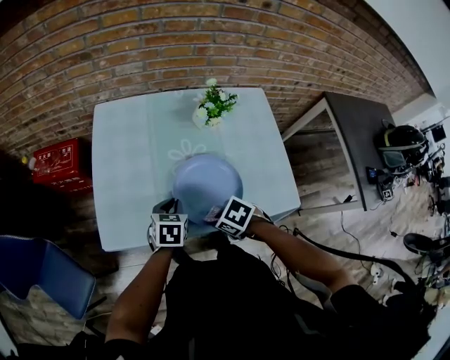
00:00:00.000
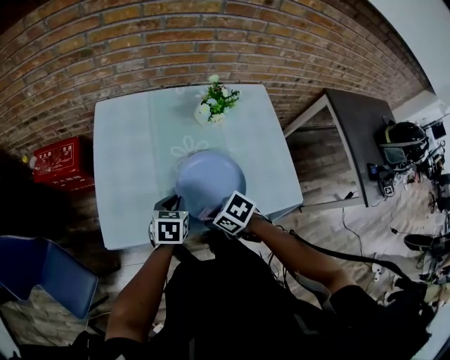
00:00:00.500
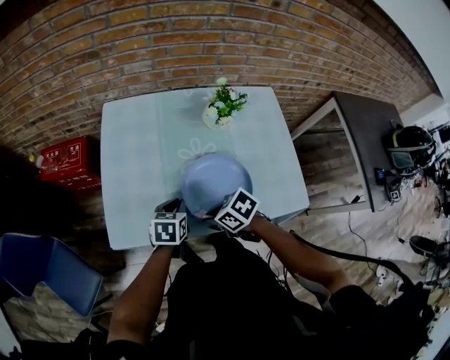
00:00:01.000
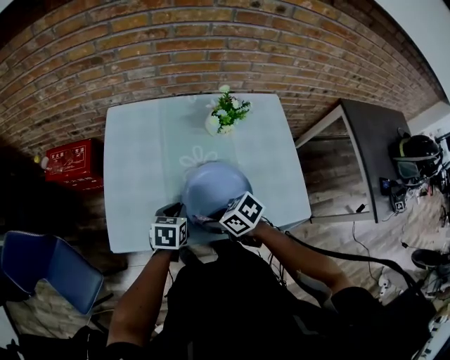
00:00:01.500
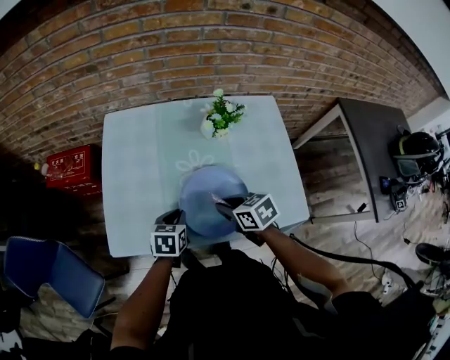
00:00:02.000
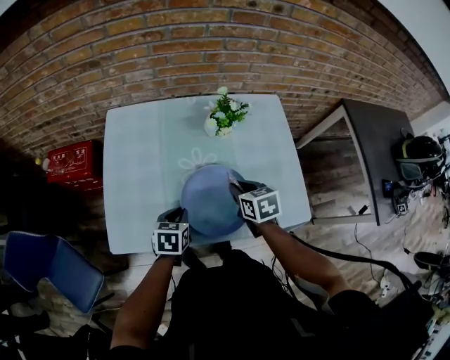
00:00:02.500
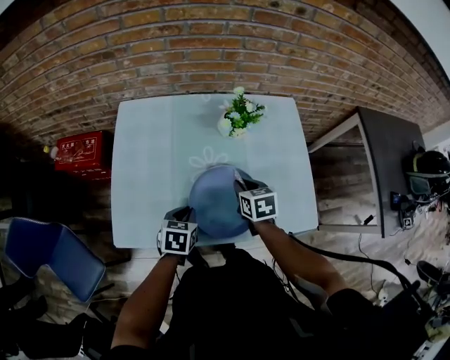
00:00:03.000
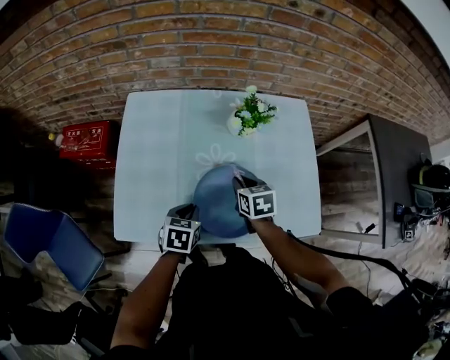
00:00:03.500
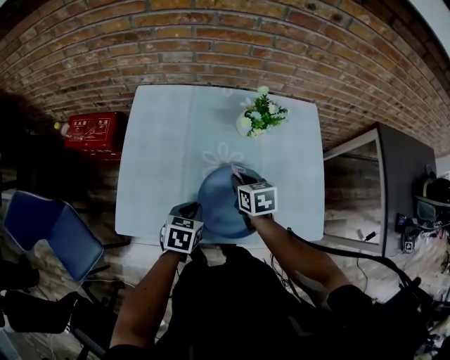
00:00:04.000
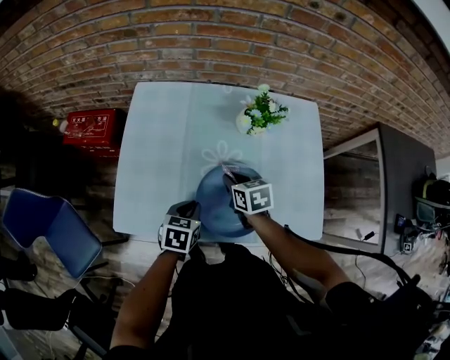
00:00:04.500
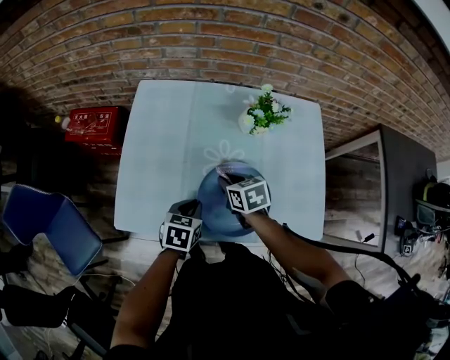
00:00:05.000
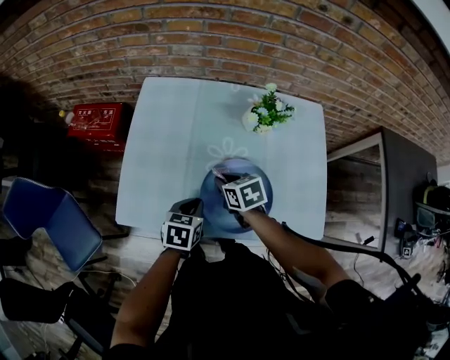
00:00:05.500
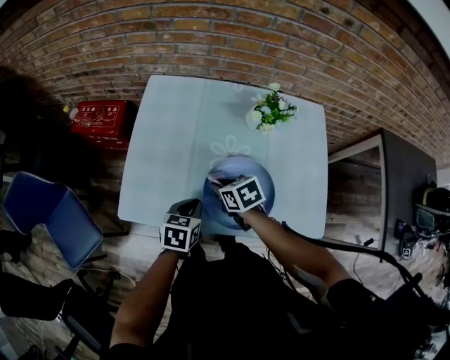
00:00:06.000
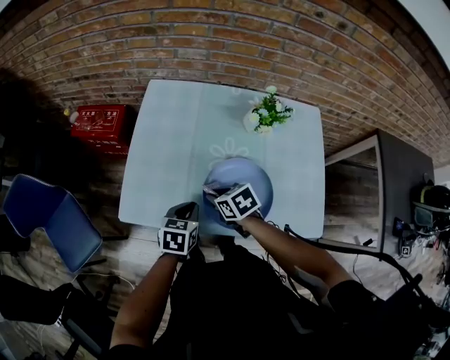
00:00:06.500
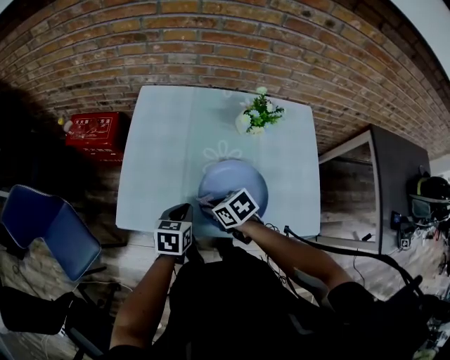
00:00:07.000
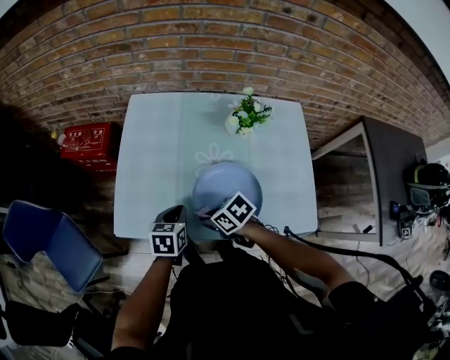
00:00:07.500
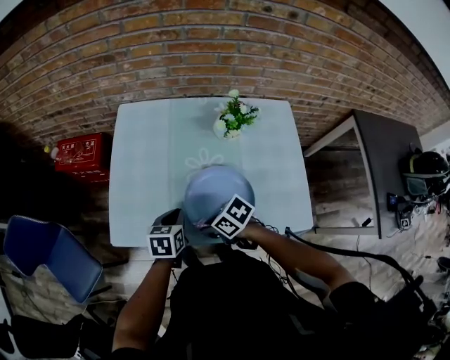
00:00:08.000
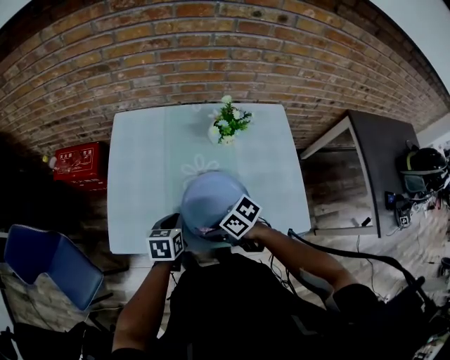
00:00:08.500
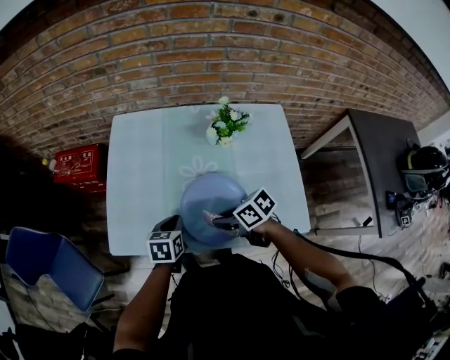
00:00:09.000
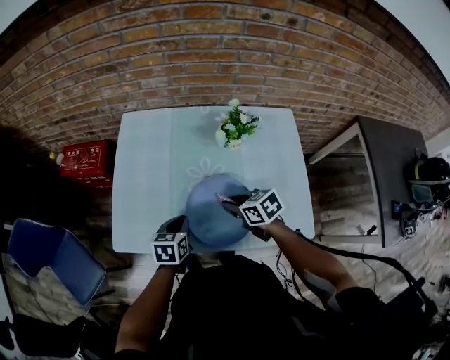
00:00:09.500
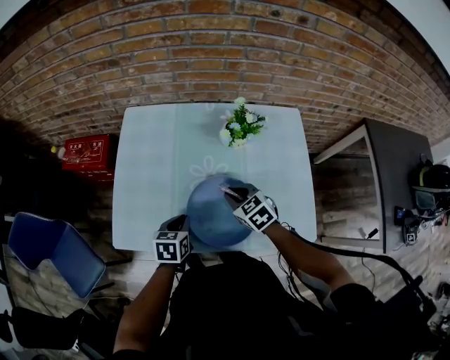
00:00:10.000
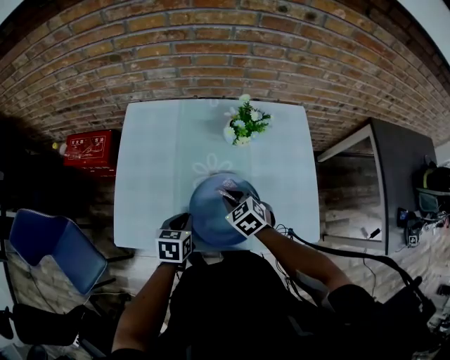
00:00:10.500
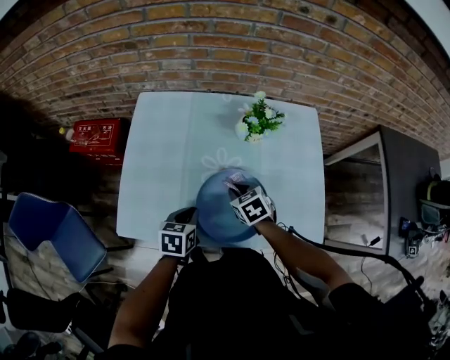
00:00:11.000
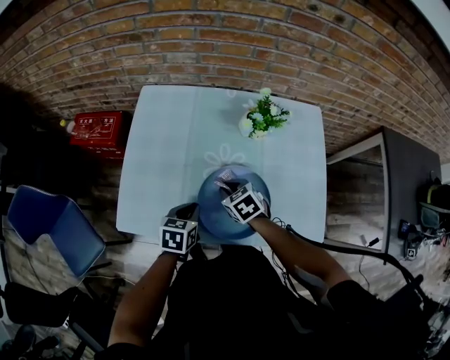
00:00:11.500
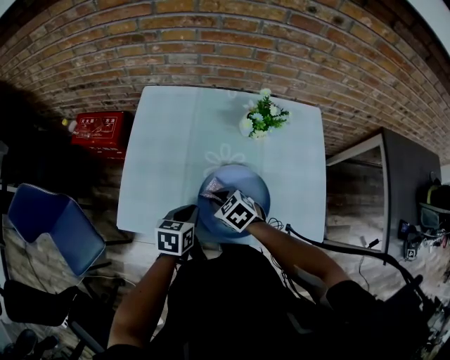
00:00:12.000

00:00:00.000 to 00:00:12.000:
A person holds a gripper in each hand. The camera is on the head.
00:00:00.000 to 00:00:02.000: The right gripper changes place by roughly 10 cm, and rotates some 40 degrees.
00:00:02.000 to 00:00:04.000: The right gripper moves forward, roughly 10 cm.
00:00:04.000 to 00:00:06.000: The right gripper heads to the left, covering some 10 cm, and turns by about 20 degrees.
00:00:06.000 to 00:00:08.000: The right gripper moves backward, some 10 cm, and swivels some 30 degrees.
00:00:08.000 to 00:00:10.000: The right gripper changes place by roughly 15 cm, and swivels about 40 degrees.
00:00:10.000 to 00:00:12.000: The right gripper heads to the left, covering some 10 cm.

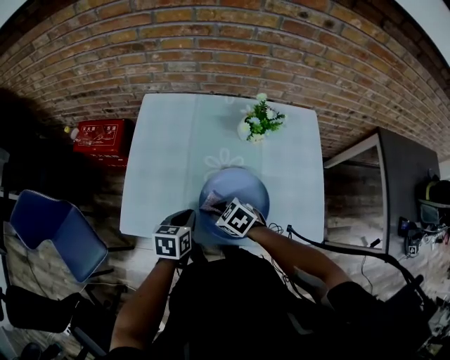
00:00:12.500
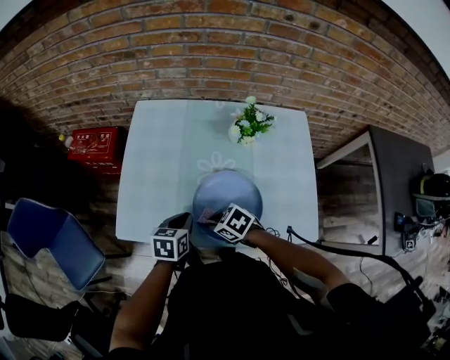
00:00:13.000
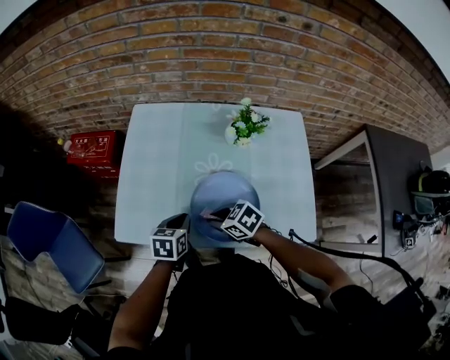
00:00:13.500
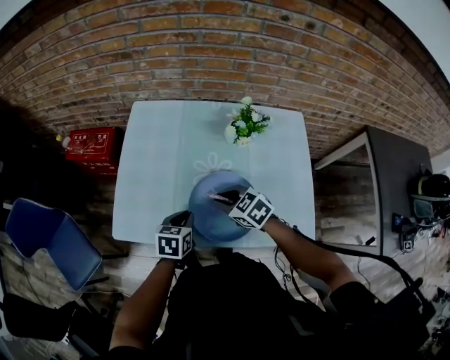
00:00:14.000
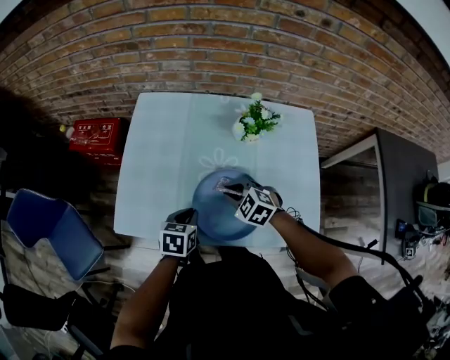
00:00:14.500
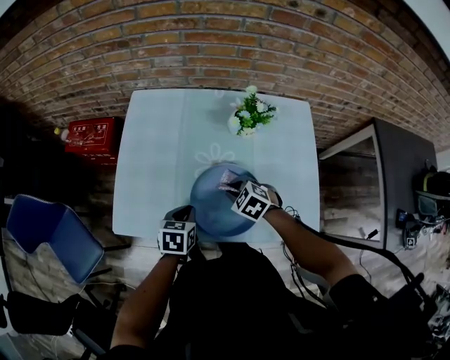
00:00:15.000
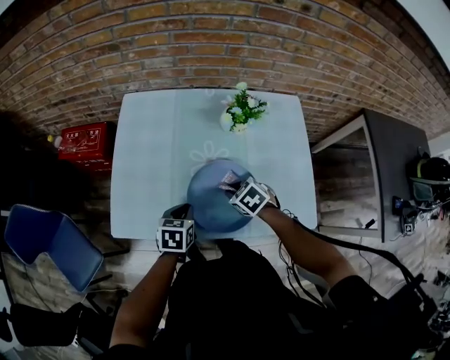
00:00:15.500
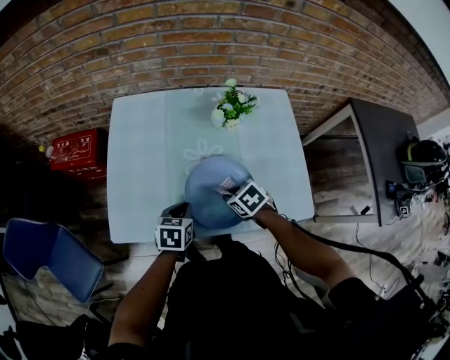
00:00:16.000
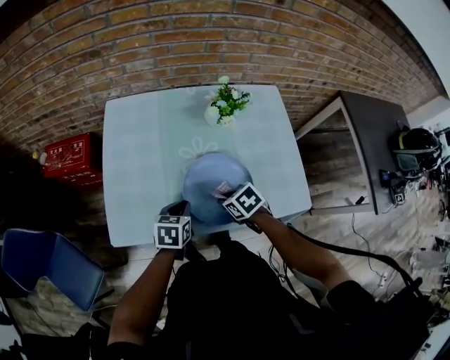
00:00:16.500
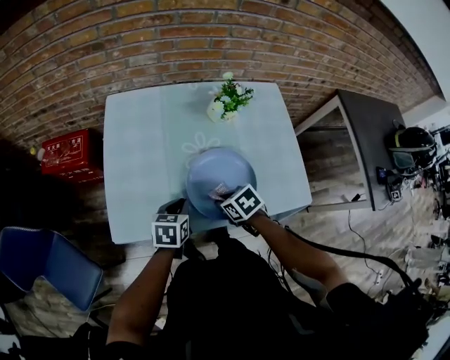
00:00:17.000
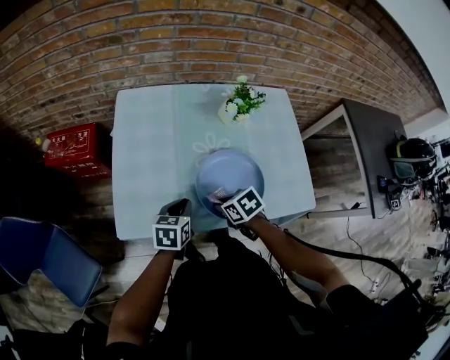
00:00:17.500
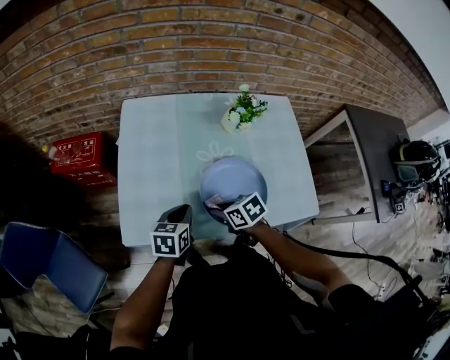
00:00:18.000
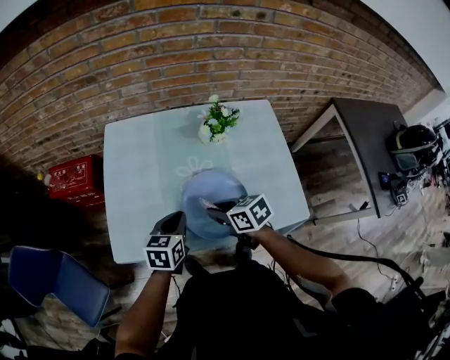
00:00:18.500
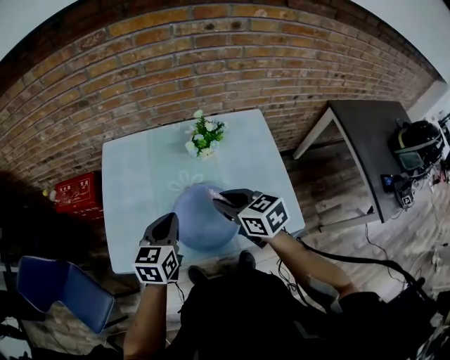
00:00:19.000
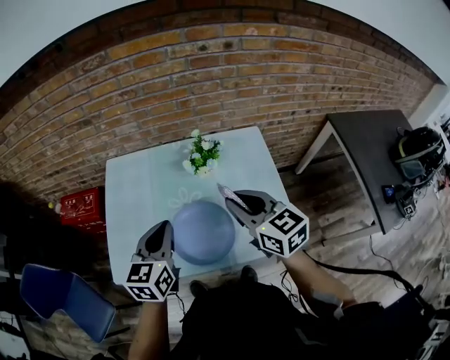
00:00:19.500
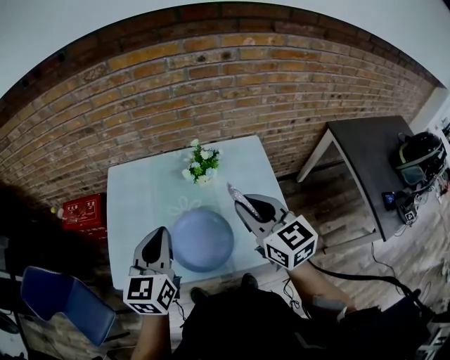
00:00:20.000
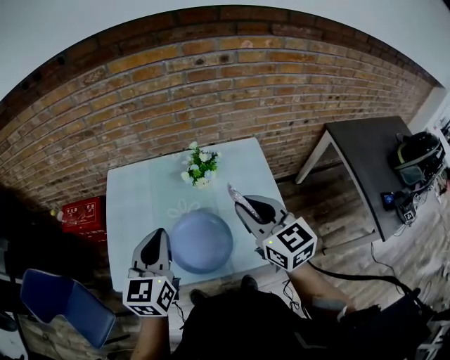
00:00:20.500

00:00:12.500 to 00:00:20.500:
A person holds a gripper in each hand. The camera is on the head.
00:00:12.500 to 00:00:14.500: The right gripper heads to the right, covering approximately 10 cm, and swivels approximately 30 degrees.
00:00:14.500 to 00:00:16.500: The right gripper travels backward by about 5 cm, and rotates around the line of its fingers by some 50 degrees, clockwise from behind.
00:00:16.500 to 00:00:18.500: The grippers both shift upward by about 5 cm. The right gripper goes to the left and returns, roughly 10 cm each way, and turns by some 30 degrees.
00:00:18.500 to 00:00:20.500: The left gripper goes roughly 20 cm upward, and swivels approximately 30 degrees. Meanwhile the right gripper goes approximately 30 cm upward and to the right, and changes its angle by approximately 50 degrees.

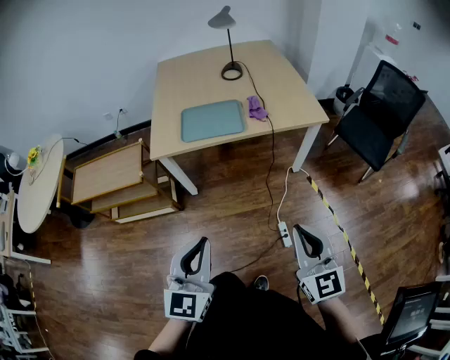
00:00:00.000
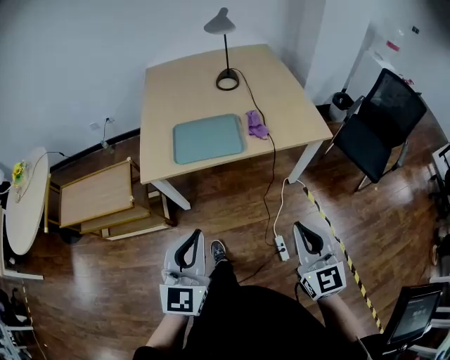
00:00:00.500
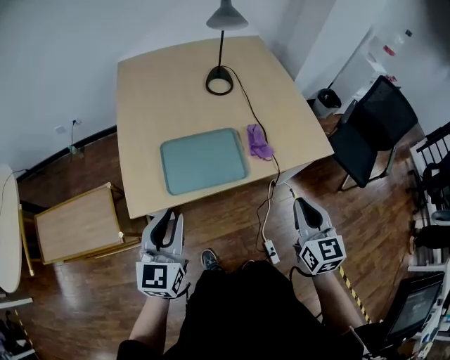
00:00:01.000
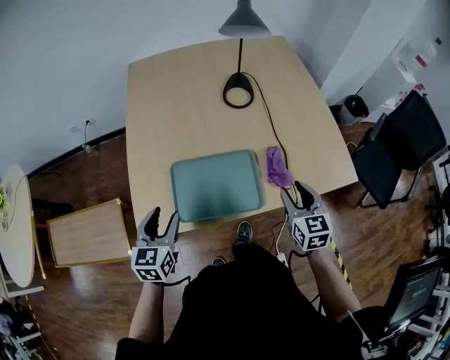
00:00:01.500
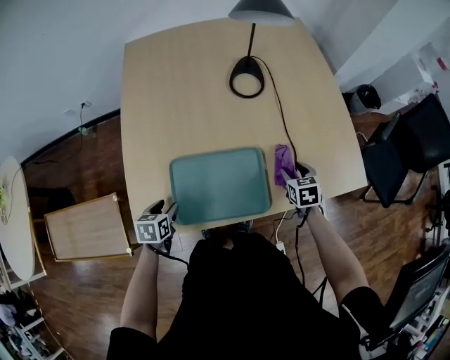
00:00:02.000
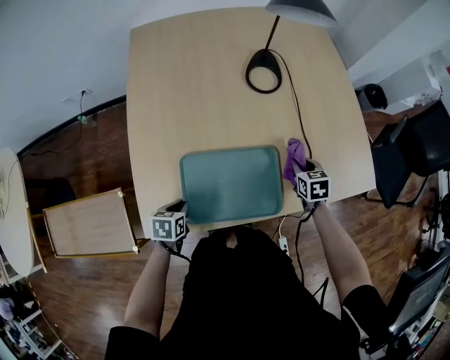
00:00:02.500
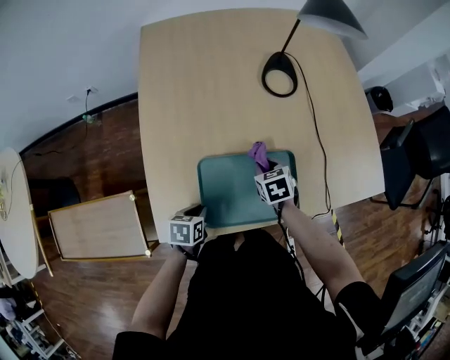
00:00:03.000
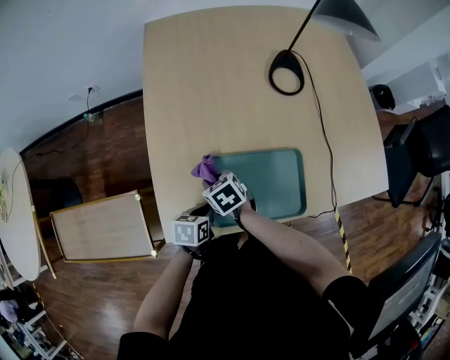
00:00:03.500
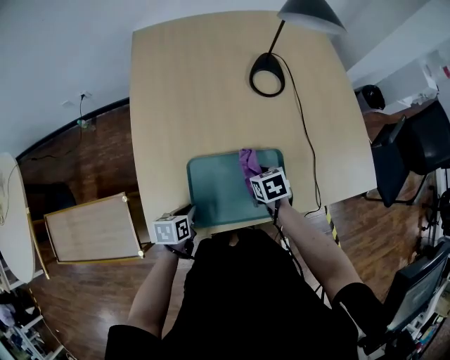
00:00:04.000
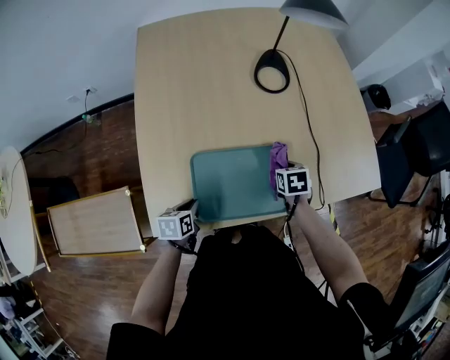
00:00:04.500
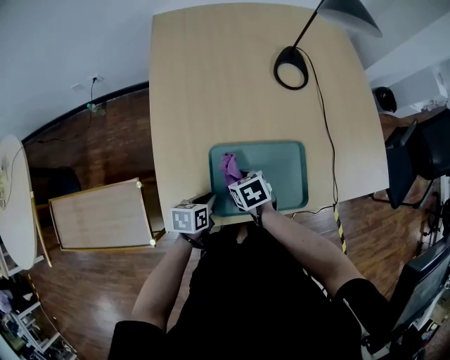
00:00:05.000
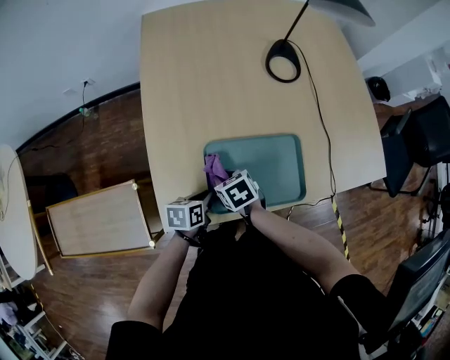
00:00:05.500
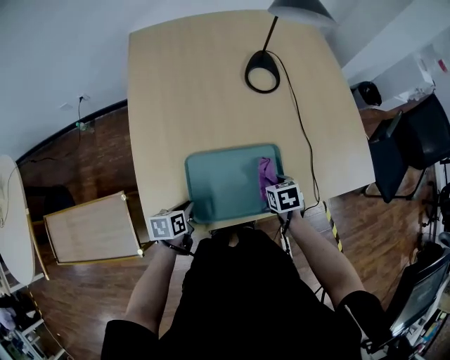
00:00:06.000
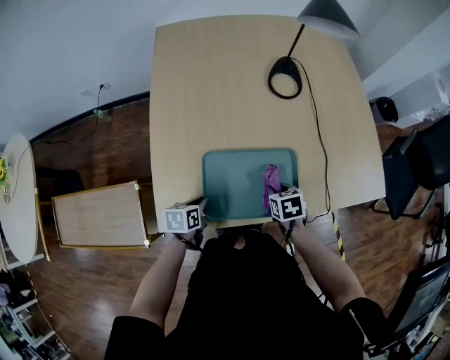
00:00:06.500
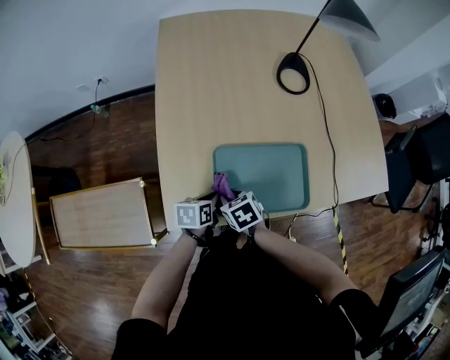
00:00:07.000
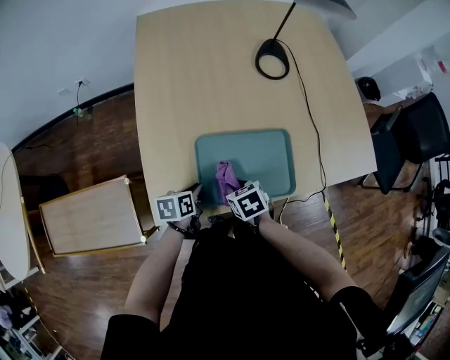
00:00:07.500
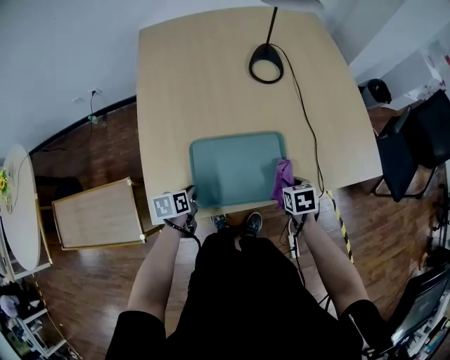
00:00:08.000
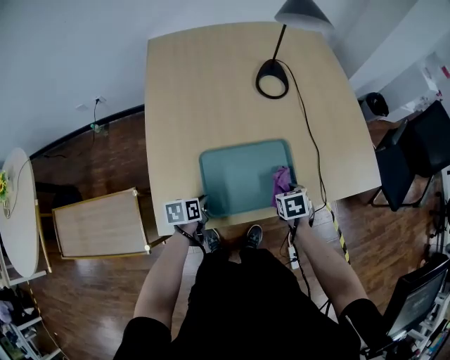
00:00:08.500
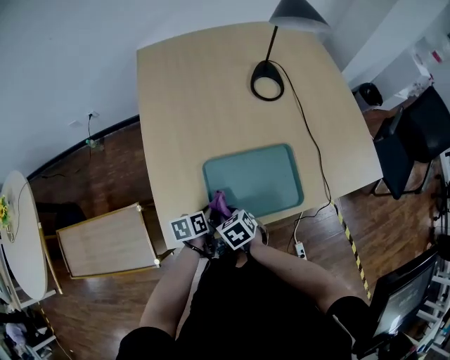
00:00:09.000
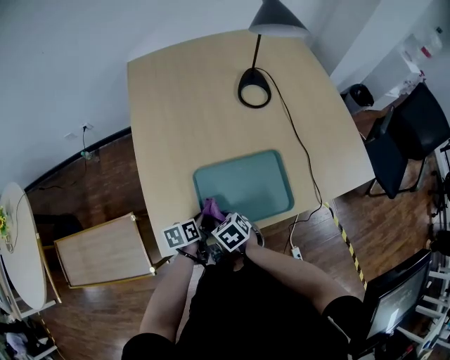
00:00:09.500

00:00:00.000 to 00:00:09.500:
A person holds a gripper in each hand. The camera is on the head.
00:00:00.000 to 00:00:02.000: Both grippers are carried forward, some 50 cm. The two grippers go roughly 30 cm downward. The right gripper points its fingers some 50 degrees further downward, and opens; the left gripper points its fingers about 50 degrees further downward, and opens.
00:00:02.000 to 00:00:04.000: The right gripper travels to the left by approximately 20 cm, and closes, while the left gripper closes.
00:00:04.000 to 00:00:05.500: The right gripper shifts approximately 15 cm to the left.
00:00:05.500 to 00:00:07.500: The right gripper moves left and right over some 25 cm, changing direction 2 times.
00:00:07.500 to 00:00:09.500: The right gripper goes to the right and returns, about 25 cm each way.
